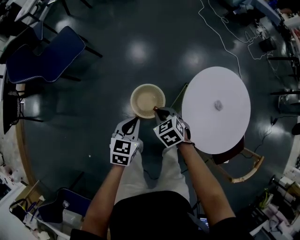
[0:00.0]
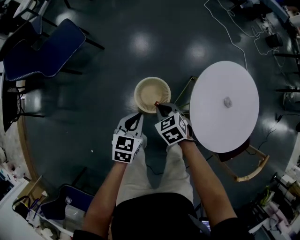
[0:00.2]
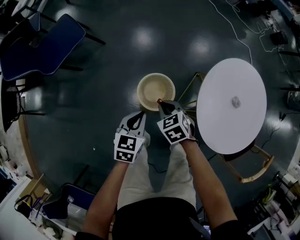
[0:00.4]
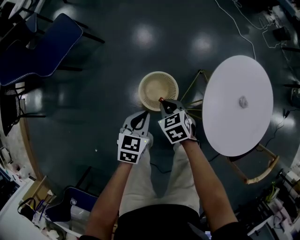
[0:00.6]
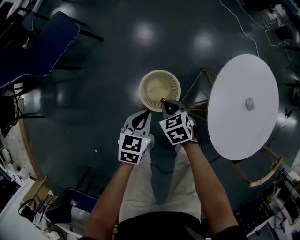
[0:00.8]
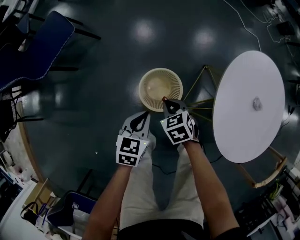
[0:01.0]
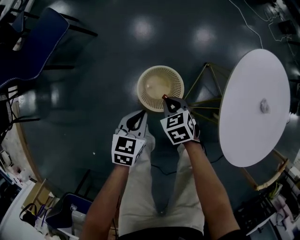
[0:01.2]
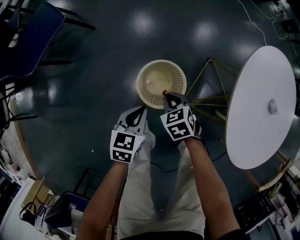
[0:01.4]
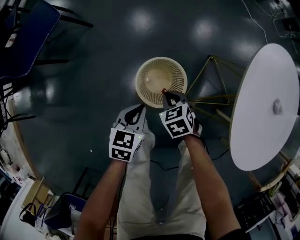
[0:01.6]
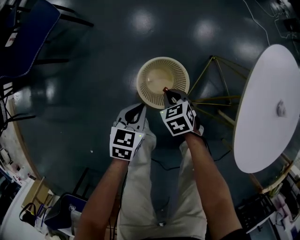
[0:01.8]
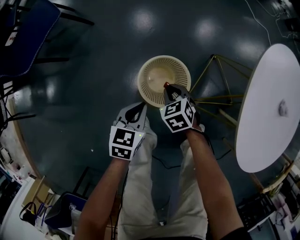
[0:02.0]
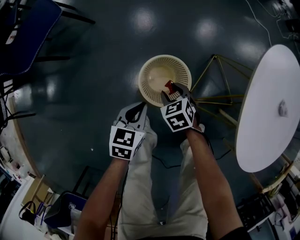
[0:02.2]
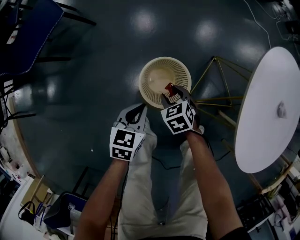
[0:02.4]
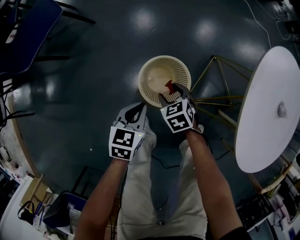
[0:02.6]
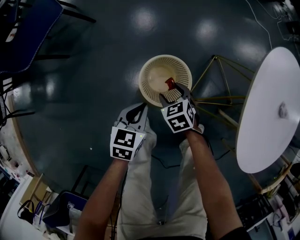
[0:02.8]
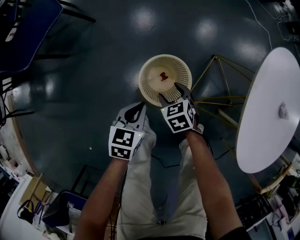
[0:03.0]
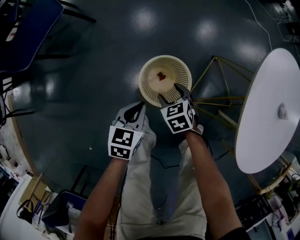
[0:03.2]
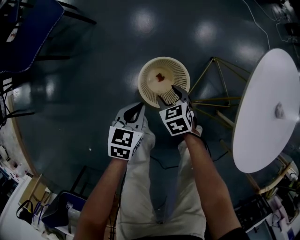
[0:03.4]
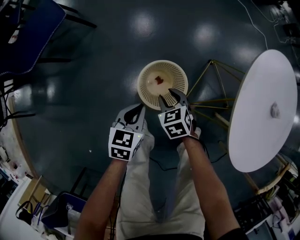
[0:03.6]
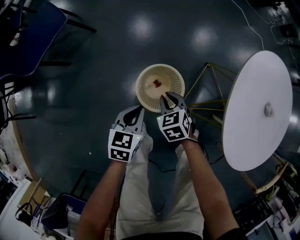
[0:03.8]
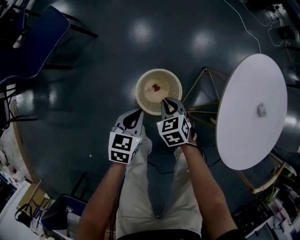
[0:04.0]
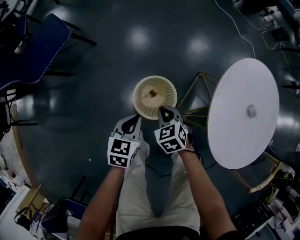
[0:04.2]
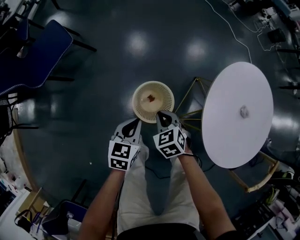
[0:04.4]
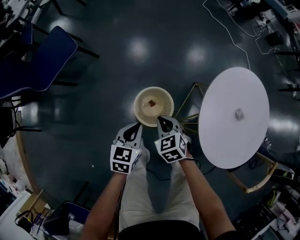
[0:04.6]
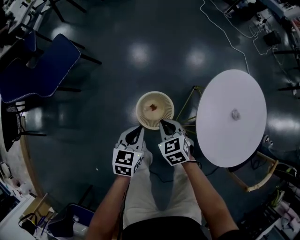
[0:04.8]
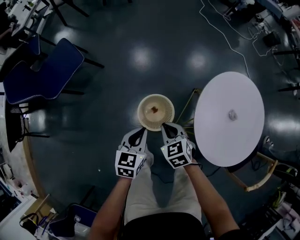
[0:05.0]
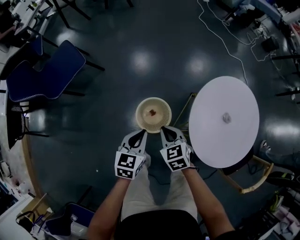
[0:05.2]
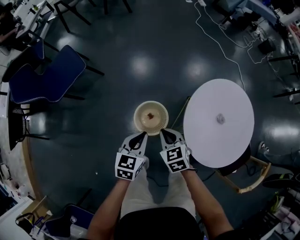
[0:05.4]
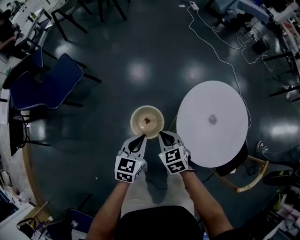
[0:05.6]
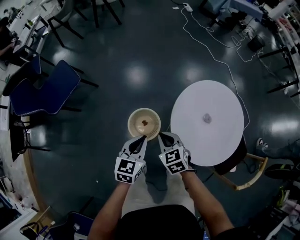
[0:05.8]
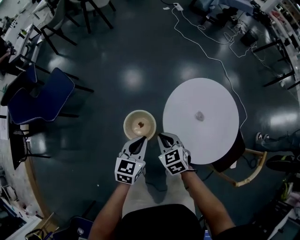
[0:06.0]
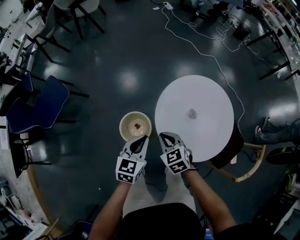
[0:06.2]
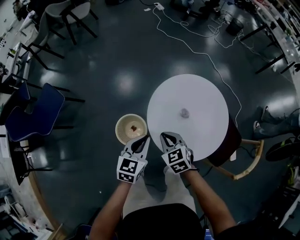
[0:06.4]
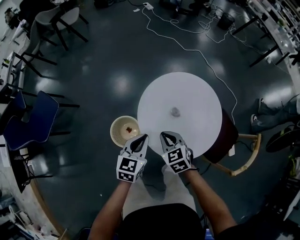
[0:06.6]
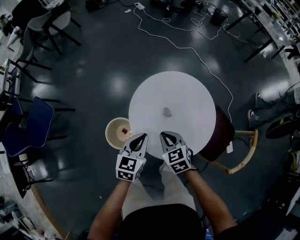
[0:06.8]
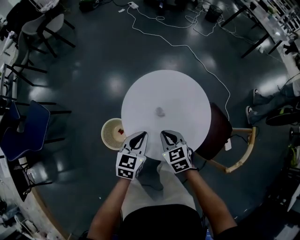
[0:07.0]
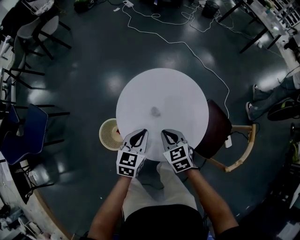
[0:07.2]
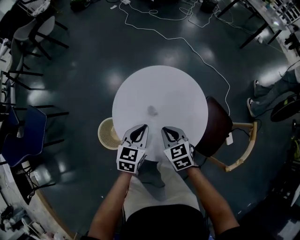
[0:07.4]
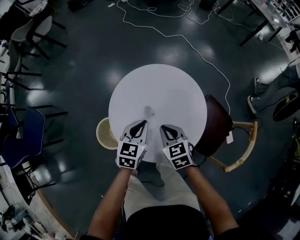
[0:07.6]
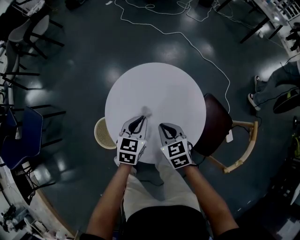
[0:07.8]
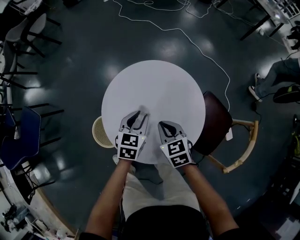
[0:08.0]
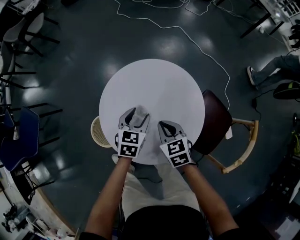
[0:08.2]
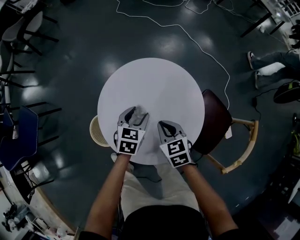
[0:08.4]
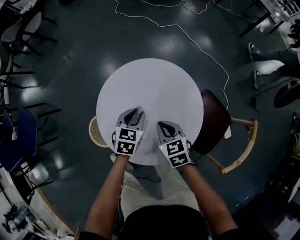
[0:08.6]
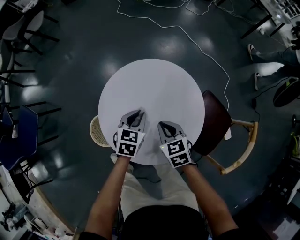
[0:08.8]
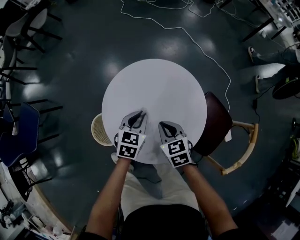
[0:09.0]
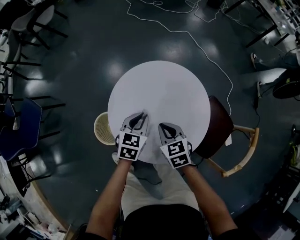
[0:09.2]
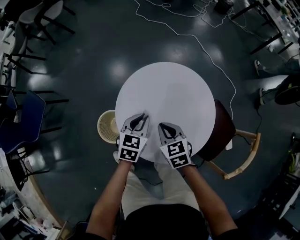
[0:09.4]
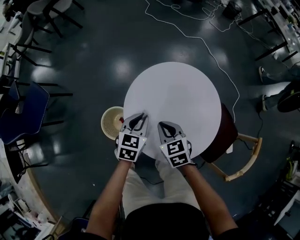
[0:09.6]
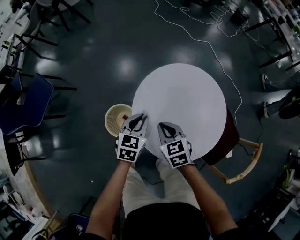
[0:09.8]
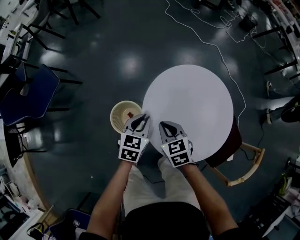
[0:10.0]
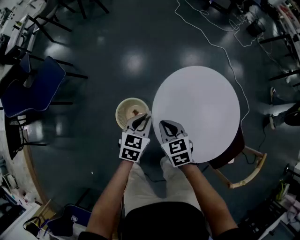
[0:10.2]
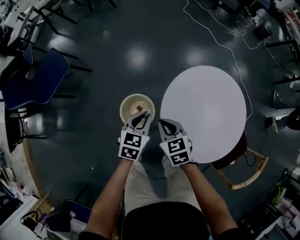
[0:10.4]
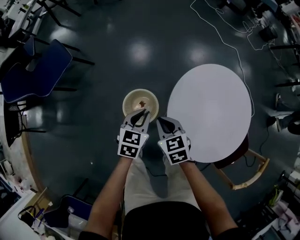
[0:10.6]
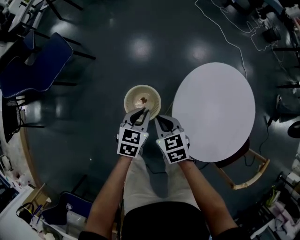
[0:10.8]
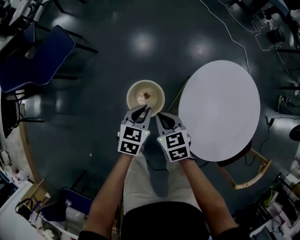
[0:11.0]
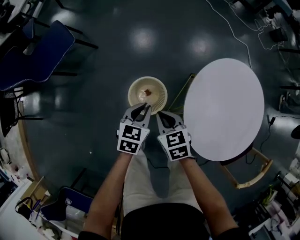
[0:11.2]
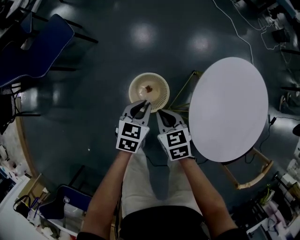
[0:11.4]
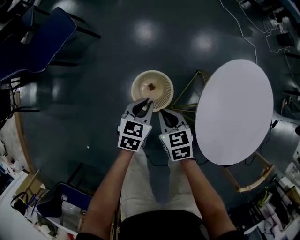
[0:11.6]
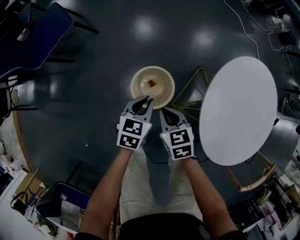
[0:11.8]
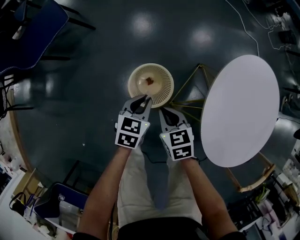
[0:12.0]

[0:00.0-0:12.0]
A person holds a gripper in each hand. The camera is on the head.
0:00.0 to 0:01.6: The grippers both shift downward by roughly 35 cm.
0:01.6 to 0:03.0: The right gripper opens its fingers.
0:03.0 to 0:04.4: Both grippers move upward, approximately 20 cm. The right gripper closes up.
0:04.4 to 0:06.0: Both grippers move upward and to the right, approximately 30 cm.
0:06.0 to 0:07.6: The two grippers go roughly 30 cm to the right. The right gripper changes its angle by approximately 20 degrees.
0:07.6 to 0:09.0: The right gripper ends up about 5 cm from where it was; the left gripper travels downward by approximately 5 cm, and opens and closes again.
0:09.0 to 0:10.4: The grippers both shift to the left by some 30 cm. The left gripper rotates roughly 20 degrees. Meanwhile the right gripper turns by roughly 20 degrees.
0:10.4 to 0:12.0: The grippers both shift downward and to the left by roughly 25 cm.

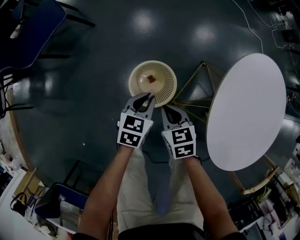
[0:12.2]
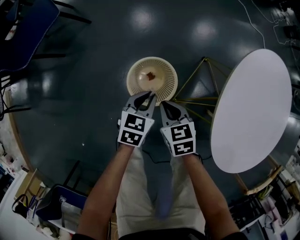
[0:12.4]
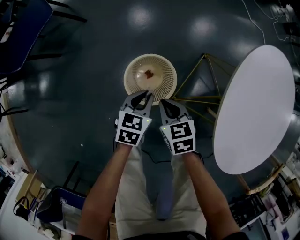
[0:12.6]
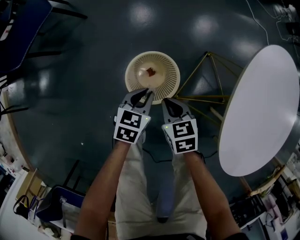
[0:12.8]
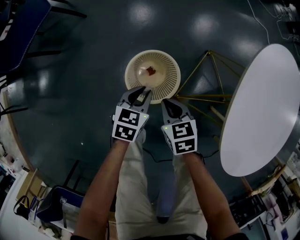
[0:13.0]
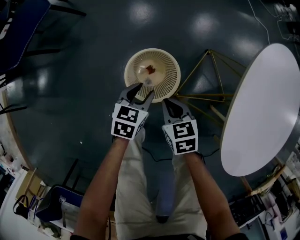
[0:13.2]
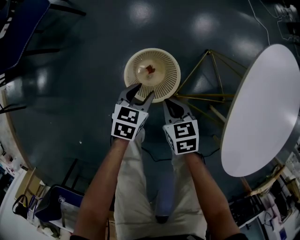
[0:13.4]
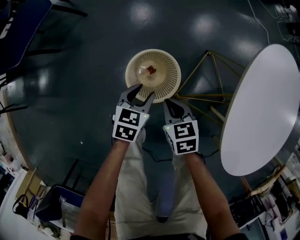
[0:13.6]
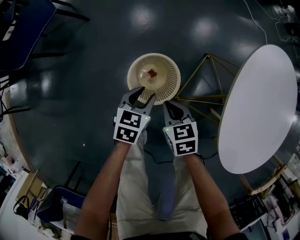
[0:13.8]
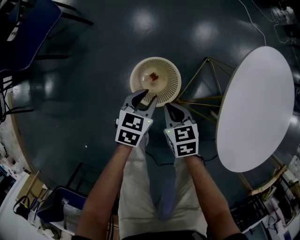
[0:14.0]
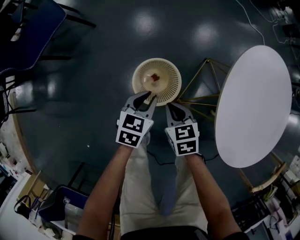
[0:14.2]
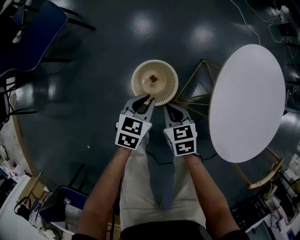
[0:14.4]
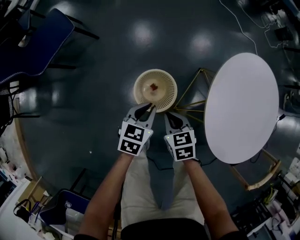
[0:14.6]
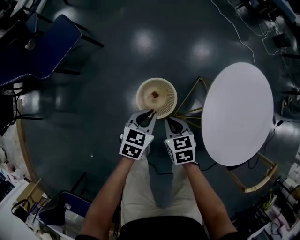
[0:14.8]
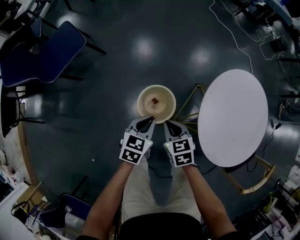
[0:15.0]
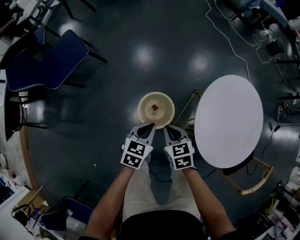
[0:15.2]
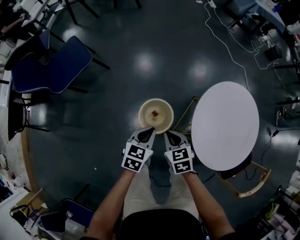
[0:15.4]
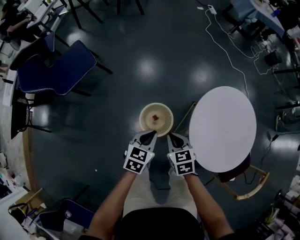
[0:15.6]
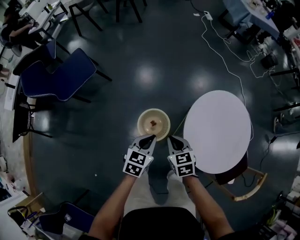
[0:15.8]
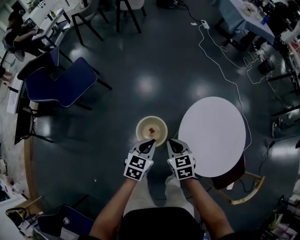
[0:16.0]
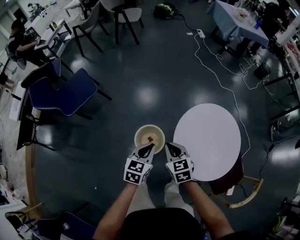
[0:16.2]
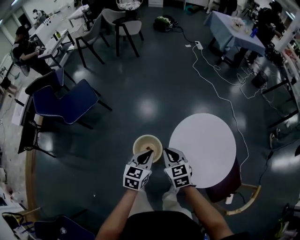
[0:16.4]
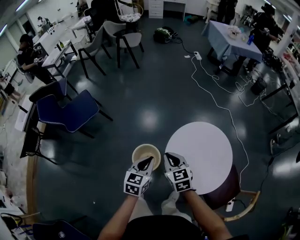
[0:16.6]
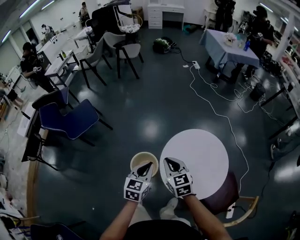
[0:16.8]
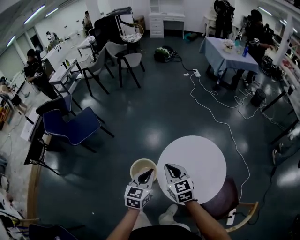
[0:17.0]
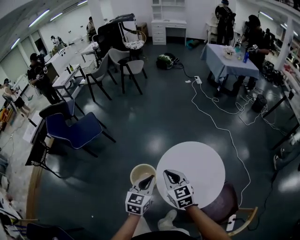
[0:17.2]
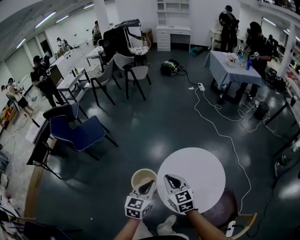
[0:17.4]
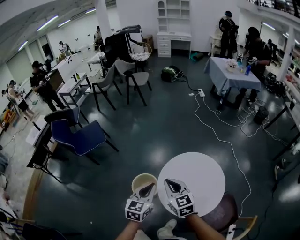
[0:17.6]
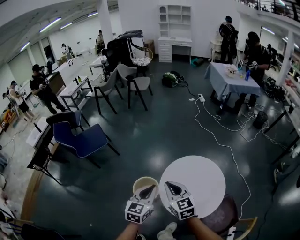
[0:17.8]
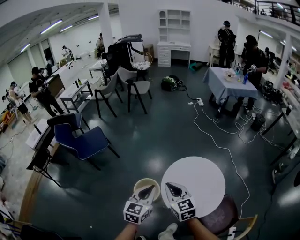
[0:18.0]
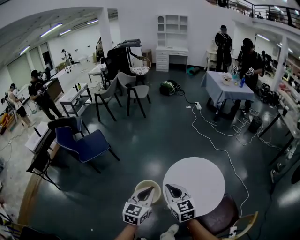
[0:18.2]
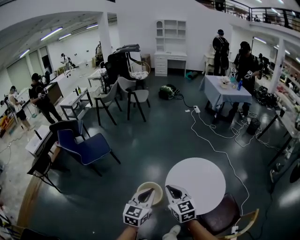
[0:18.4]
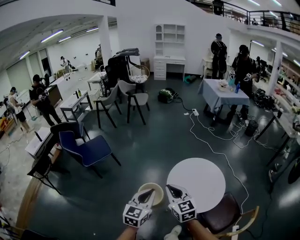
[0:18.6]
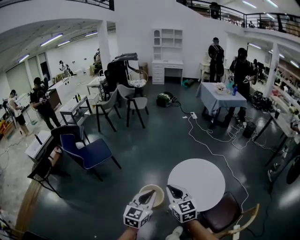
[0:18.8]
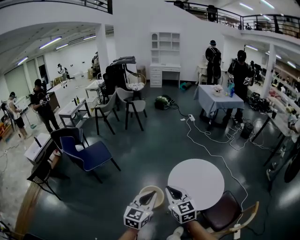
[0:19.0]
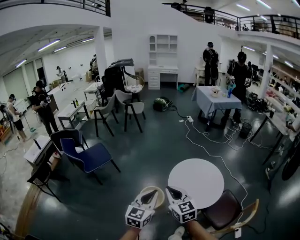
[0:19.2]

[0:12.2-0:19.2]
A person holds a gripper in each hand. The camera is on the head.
0:12.2 to 0:13.6: The two grippers go approximately 10 cm downward. The left gripper opens its fingers.
0:13.6 to 0:15.0: The grippers both shift upward by roughly 25 cm. The left gripper closes up.
0:15.0 to 0:16.4: The two grippers go approximately 30 cm upward and to the right.
0:16.4 to 0:17.8: The grippers both shift upward, to the right and backward by about 20 cm.
0:17.8 to 0:19.2: The right gripper travels backward, to the left and upward by some 25 cm. Meanwhile the left gripper travels backward, upward and to the left by about 25 cm.

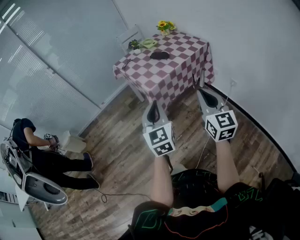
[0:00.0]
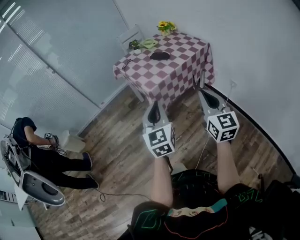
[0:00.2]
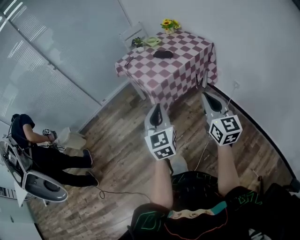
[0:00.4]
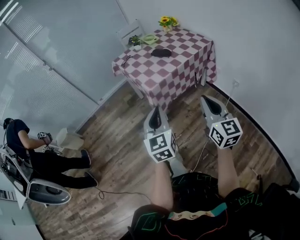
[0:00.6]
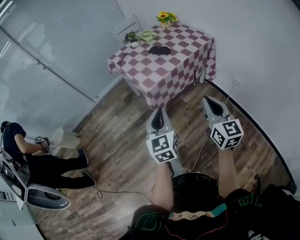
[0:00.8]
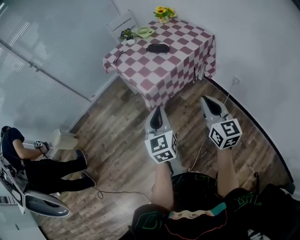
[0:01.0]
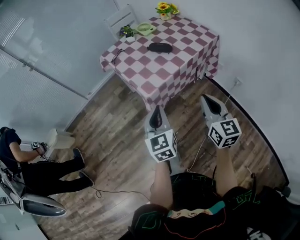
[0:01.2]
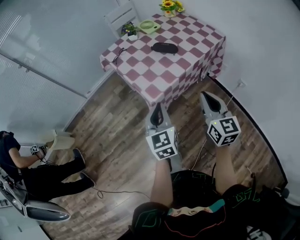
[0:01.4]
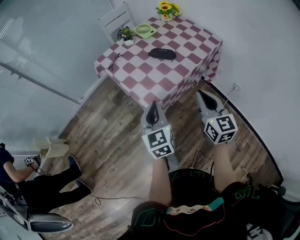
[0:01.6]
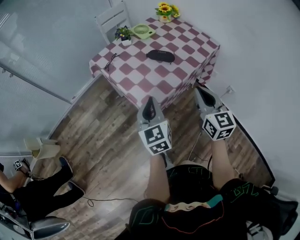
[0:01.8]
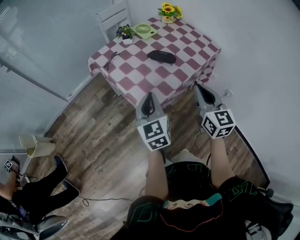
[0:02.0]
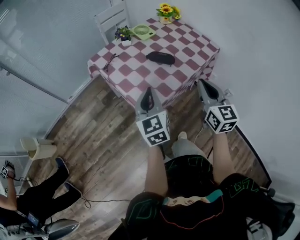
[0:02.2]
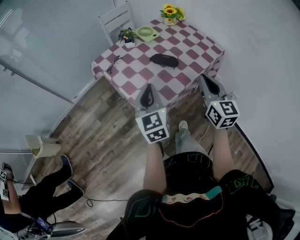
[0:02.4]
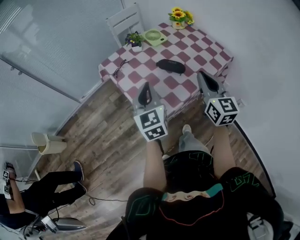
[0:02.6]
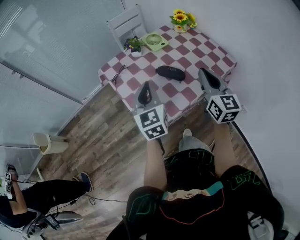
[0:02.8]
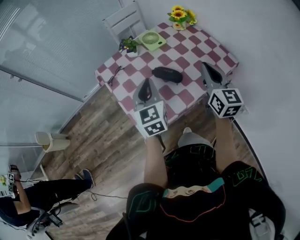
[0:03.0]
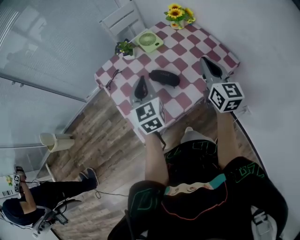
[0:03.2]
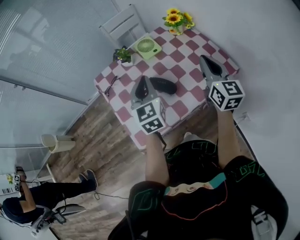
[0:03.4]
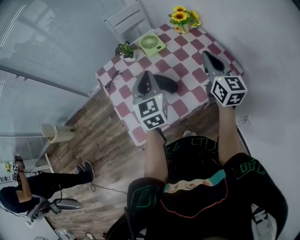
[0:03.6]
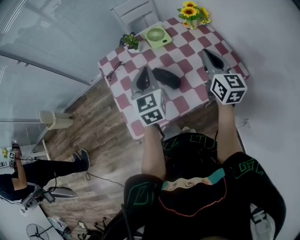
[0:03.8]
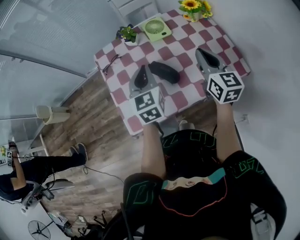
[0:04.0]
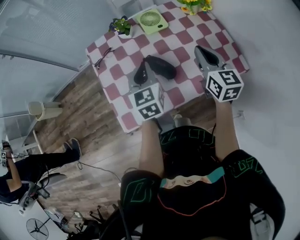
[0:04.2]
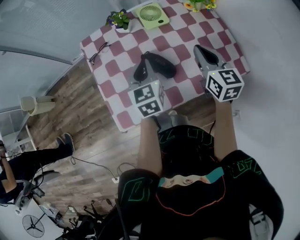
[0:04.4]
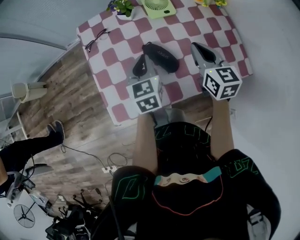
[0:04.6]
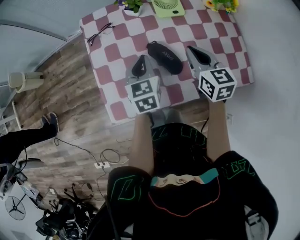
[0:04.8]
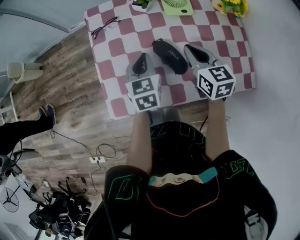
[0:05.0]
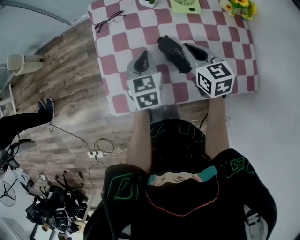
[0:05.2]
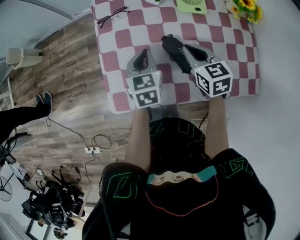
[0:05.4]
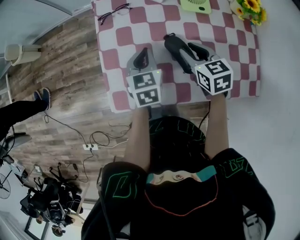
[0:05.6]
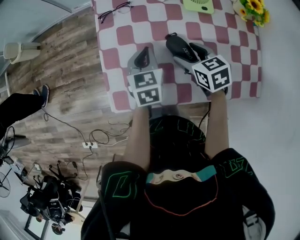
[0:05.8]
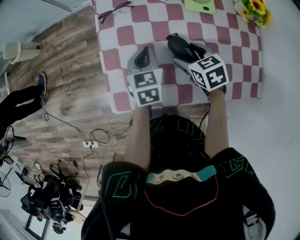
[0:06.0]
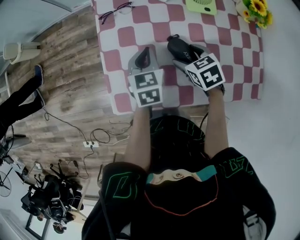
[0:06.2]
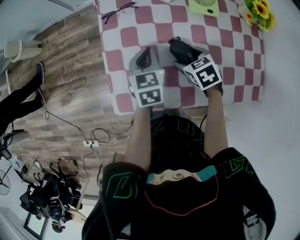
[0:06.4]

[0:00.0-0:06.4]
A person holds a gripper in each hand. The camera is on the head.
0:00.0 to 0:01.6: The right gripper goes approximately 30 cm forward; the left gripper moves forward and downward, about 30 cm.
0:01.6 to 0:03.2: The left gripper travels forward by roughly 25 cm, while the right gripper moves forward and to the right, roughly 35 cm.
0:03.2 to 0:04.8: The left gripper heads downward, covering approximately 15 cm, and rotates roughly 20 degrees; the right gripper shifts some 20 cm downward, forward and to the left, and rotates roughly 40 degrees.
0:04.8 to 0:06.4: The left gripper heads downward, covering approximately 5 cm, while the right gripper heads downward and to the left, covering approximately 15 cm, tips its fingers downward by about 40 degrees, and opens its fingers.
